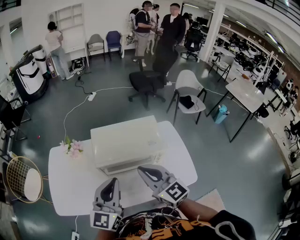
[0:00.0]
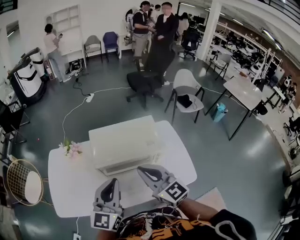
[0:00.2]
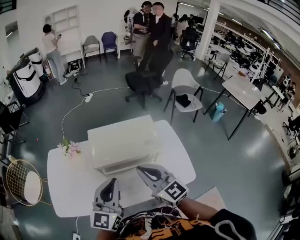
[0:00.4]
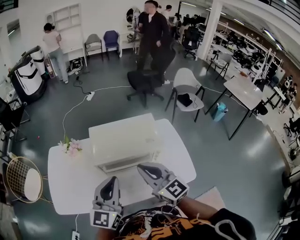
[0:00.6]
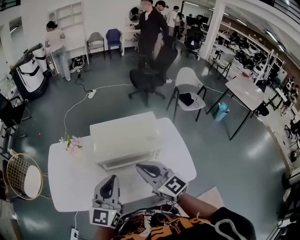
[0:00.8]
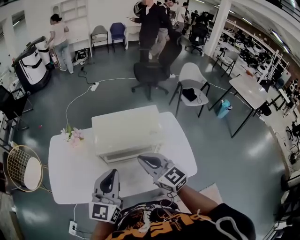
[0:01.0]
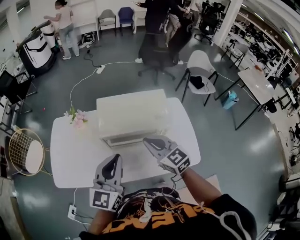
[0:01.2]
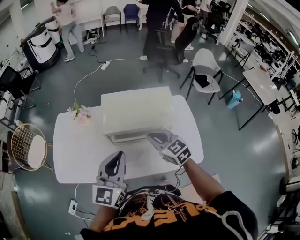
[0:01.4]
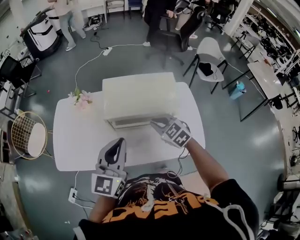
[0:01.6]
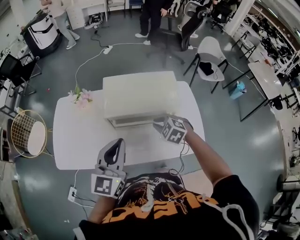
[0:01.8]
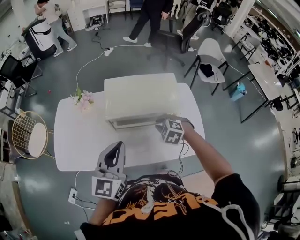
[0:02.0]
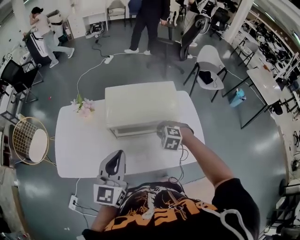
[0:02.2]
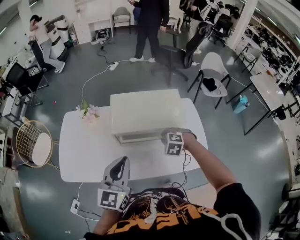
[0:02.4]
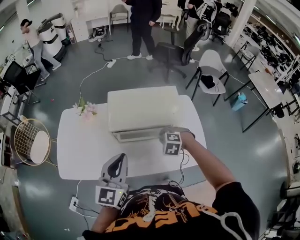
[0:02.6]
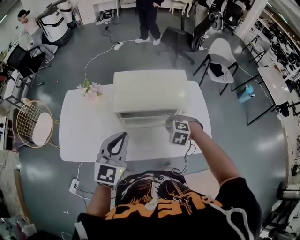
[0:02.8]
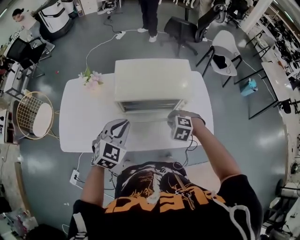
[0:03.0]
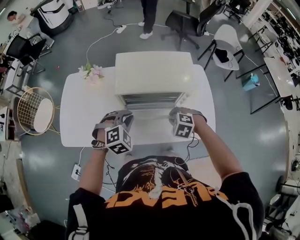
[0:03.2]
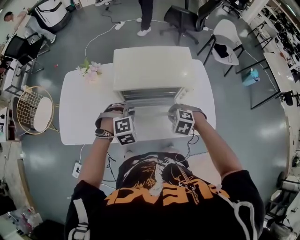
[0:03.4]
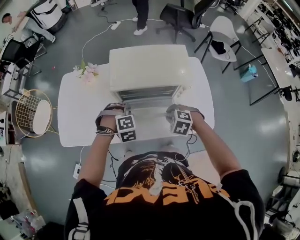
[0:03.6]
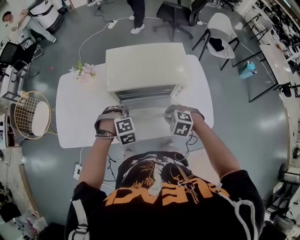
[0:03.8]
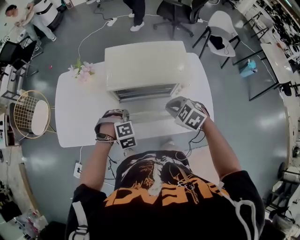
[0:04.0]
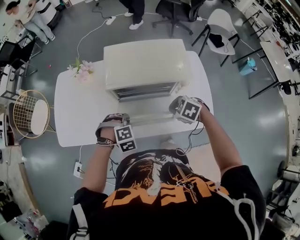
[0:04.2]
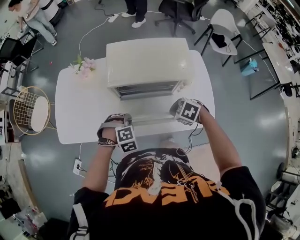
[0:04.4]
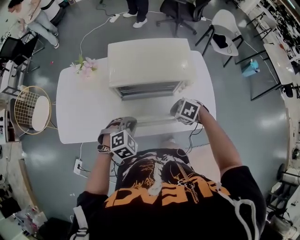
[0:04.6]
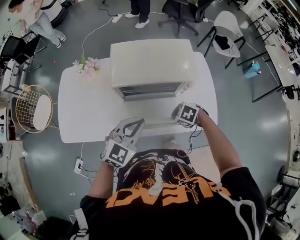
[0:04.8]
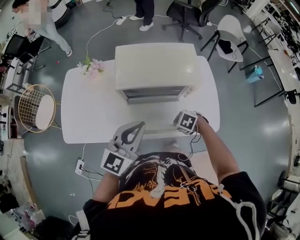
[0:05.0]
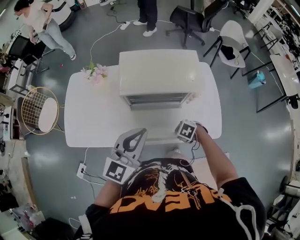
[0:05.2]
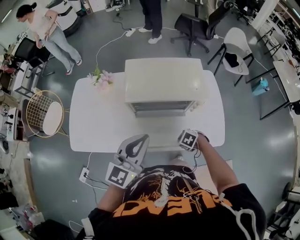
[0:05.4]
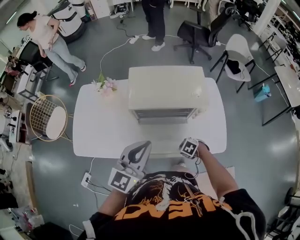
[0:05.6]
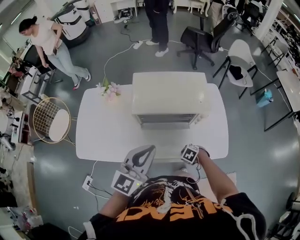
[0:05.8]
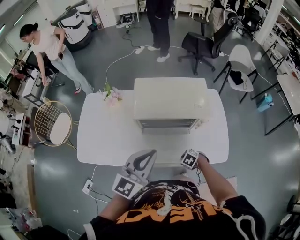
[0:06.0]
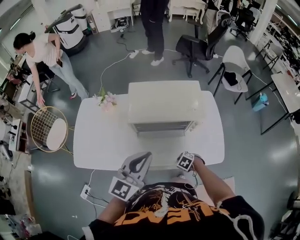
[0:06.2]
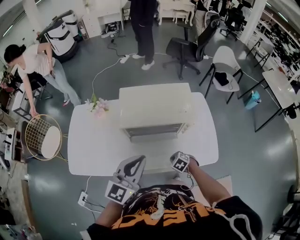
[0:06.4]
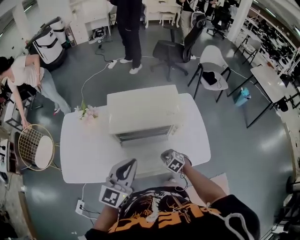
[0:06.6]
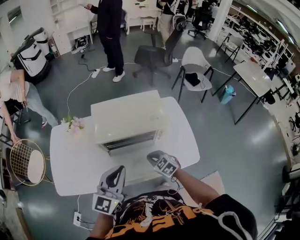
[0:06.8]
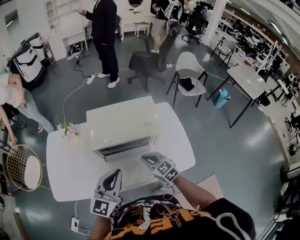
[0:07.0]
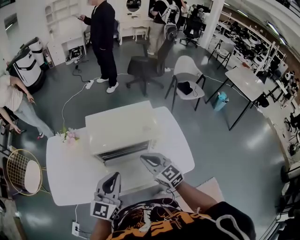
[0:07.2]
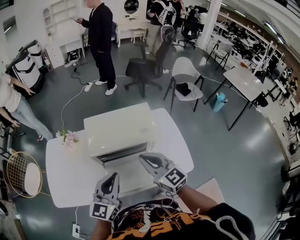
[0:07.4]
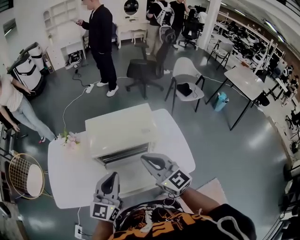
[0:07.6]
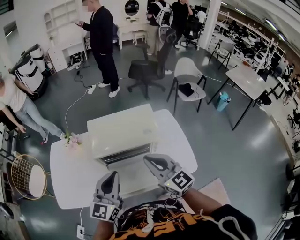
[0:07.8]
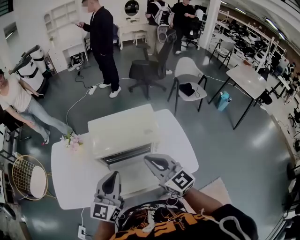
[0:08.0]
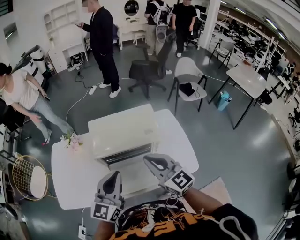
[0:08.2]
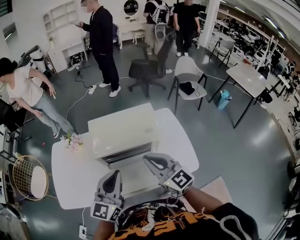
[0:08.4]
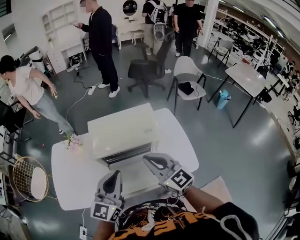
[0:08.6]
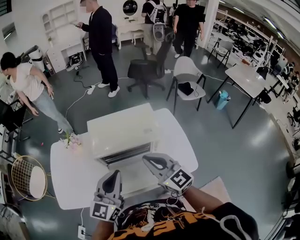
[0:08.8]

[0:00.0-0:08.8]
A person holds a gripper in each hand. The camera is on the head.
0:00.0 to 0:01.4: The right gripper is displaced downward by approximately 10 cm, and changes its angle by about 30 degrees.
0:01.4 to 0:03.0: The two grippers go roughly 10 cm downward. The right gripper tips its fingers downward by some 40 degrees. Meanwhile the left gripper swivels about 40 degrees.
0:03.0 to 0:04.4: The right gripper swivels roughly 30 degrees. Meanwhile the left gripper moves downward, approximately 20 cm, and angles its fingers downward, by some 40 degrees.
0:04.4 to 0:05.8: The left gripper goes approximately 25 cm upward, and tilts its fingers roughly 70 degrees upward. Meanwhile the right gripper travels downward by some 15 cm.
0:05.8 to 0:07.4: The right gripper is displaced upward by approximately 35 cm, and tilts its fingers approximately 70 degrees upward.
0:07.4 to 0:08.8: The grippers make only small movements.

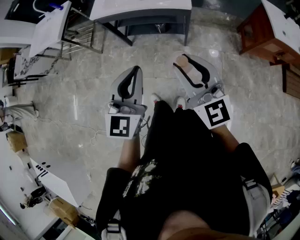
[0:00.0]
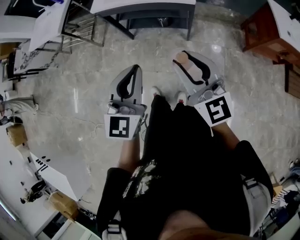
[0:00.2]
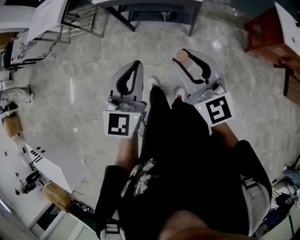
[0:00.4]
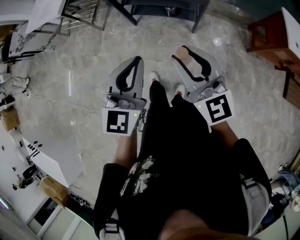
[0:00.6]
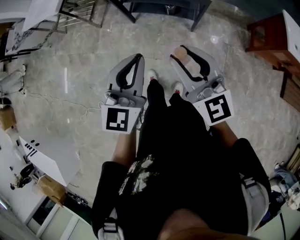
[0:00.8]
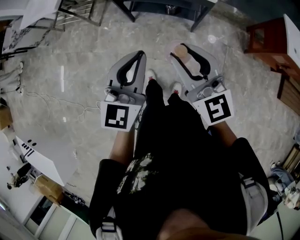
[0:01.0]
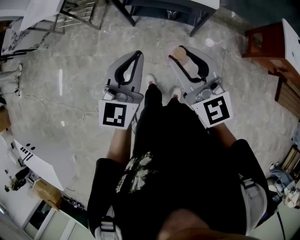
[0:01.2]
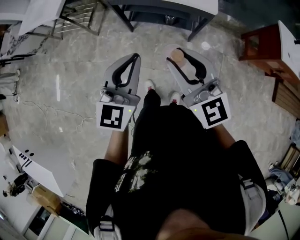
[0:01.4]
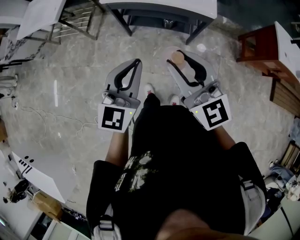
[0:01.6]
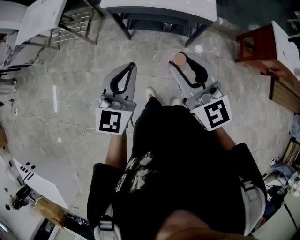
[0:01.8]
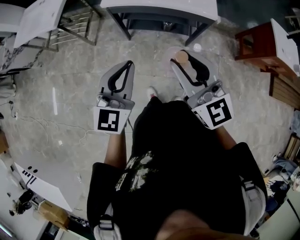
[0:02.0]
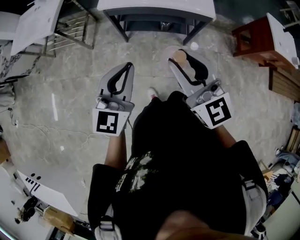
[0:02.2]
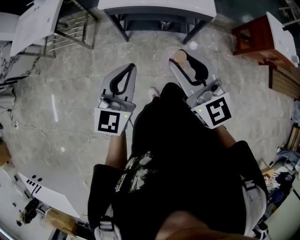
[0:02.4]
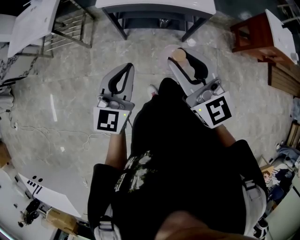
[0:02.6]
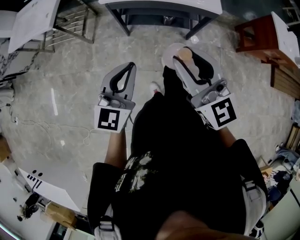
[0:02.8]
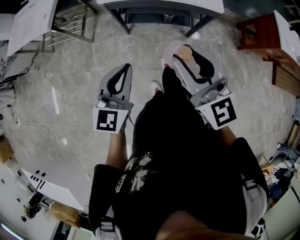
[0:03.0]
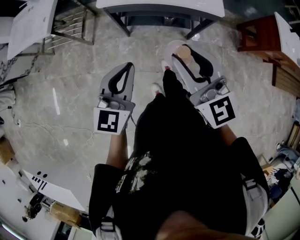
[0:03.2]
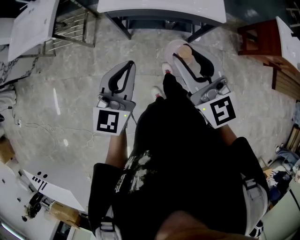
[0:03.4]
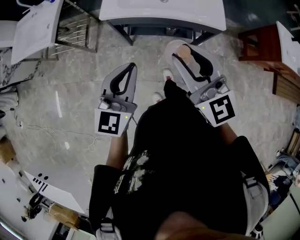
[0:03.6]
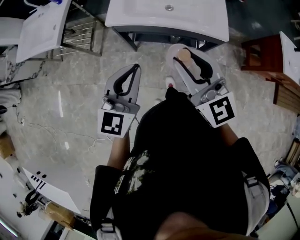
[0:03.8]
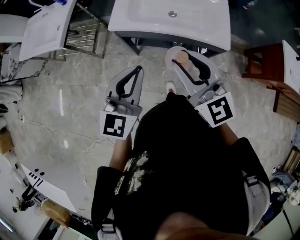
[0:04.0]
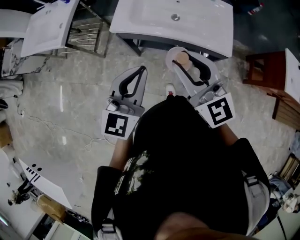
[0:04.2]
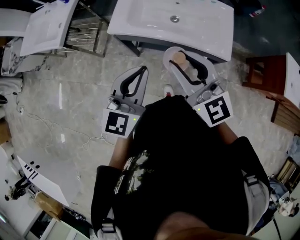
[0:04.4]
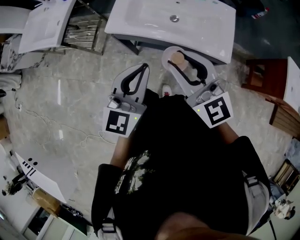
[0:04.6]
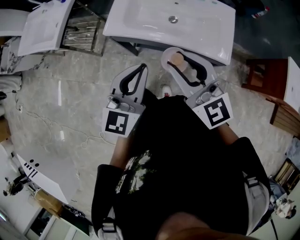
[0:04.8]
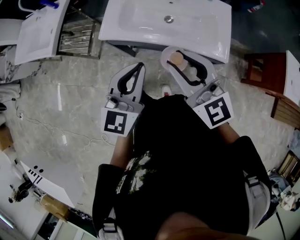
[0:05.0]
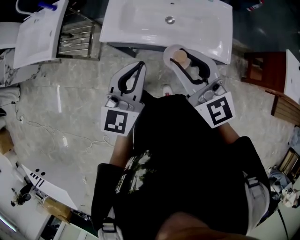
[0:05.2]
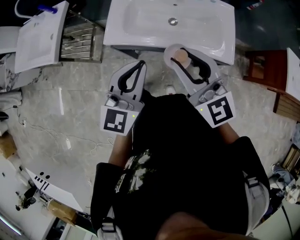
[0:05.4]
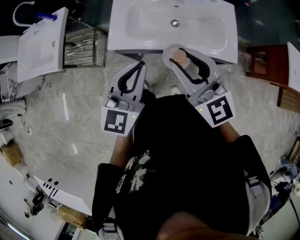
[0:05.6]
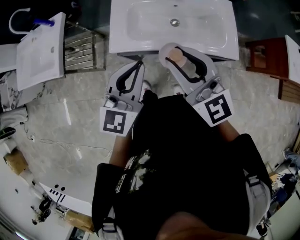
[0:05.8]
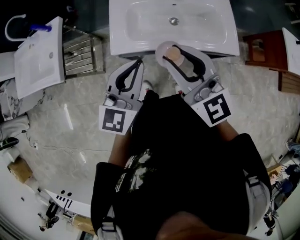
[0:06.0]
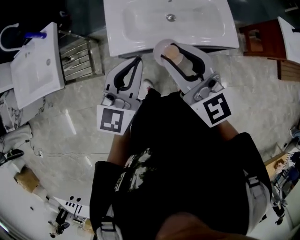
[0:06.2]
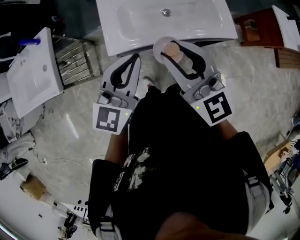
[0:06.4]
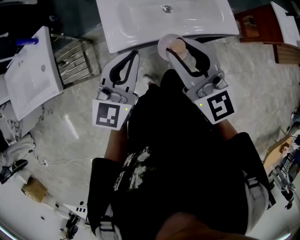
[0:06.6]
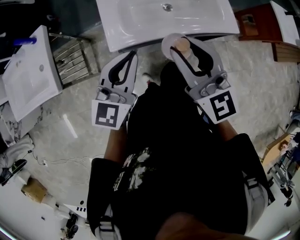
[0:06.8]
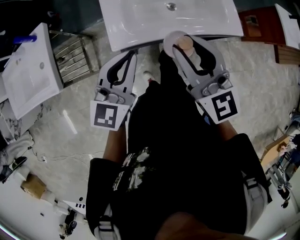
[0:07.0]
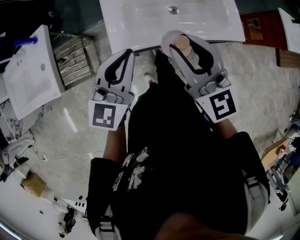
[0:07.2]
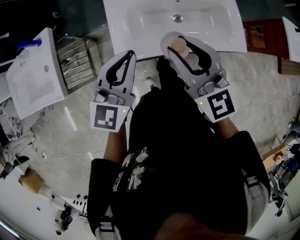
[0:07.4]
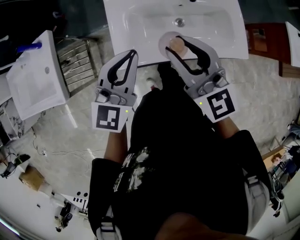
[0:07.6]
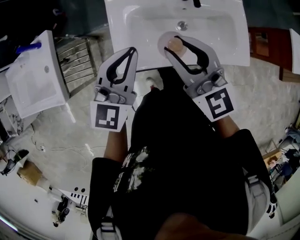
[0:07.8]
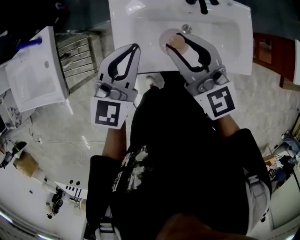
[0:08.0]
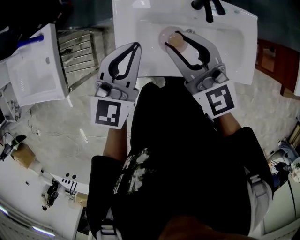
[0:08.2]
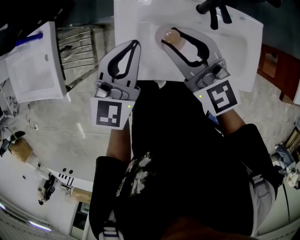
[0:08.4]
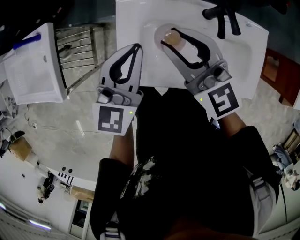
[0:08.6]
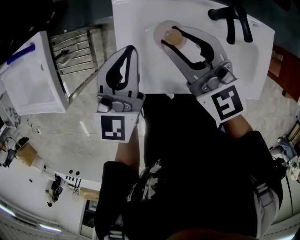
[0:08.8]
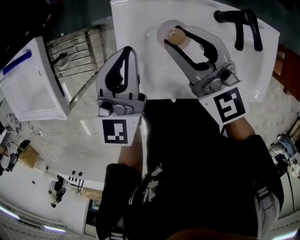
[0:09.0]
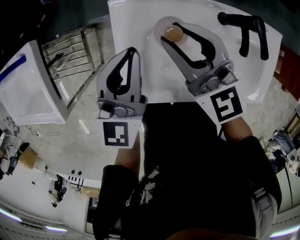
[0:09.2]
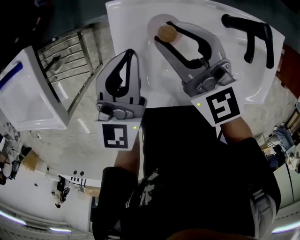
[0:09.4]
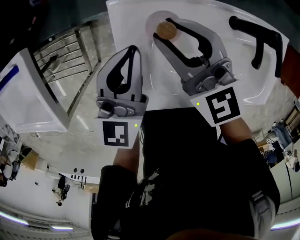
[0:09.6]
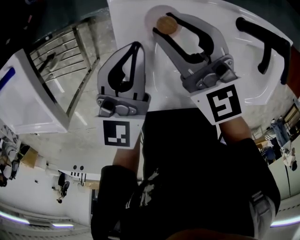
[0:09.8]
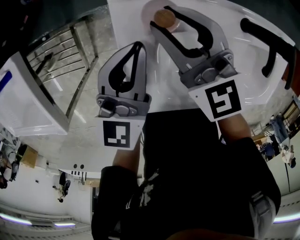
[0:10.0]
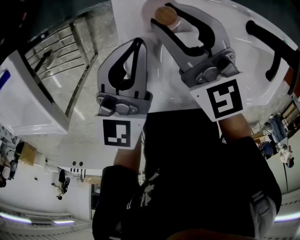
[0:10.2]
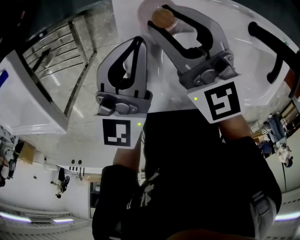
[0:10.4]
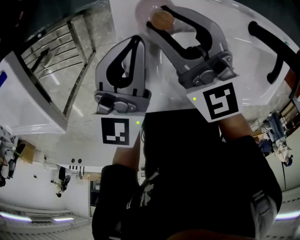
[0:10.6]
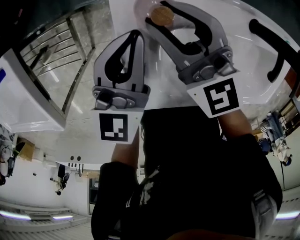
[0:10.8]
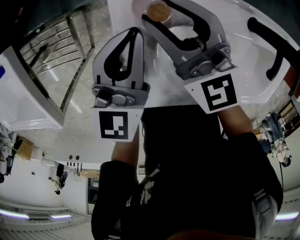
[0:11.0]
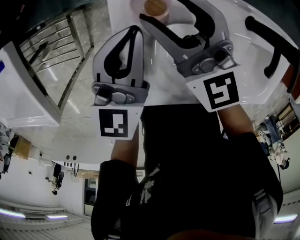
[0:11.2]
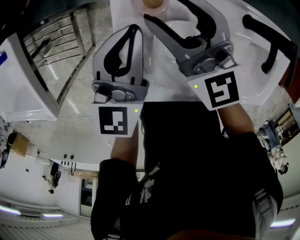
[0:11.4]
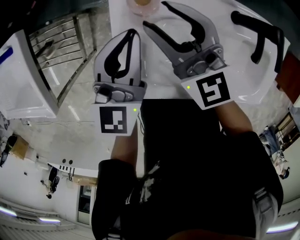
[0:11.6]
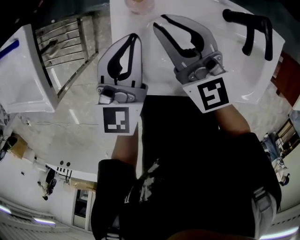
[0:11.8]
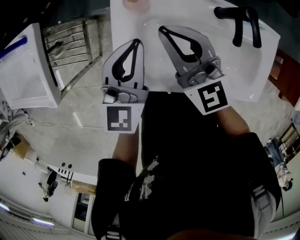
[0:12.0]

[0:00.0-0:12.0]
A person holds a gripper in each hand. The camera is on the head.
0:00.0 to 0:01.6: The grippers both shift to the left and forward by roughly 20 cm.
0:01.6 to 0:03.0: The right gripper moves to the left and forward, some 10 cm. Meanwhile the left gripper goes approximately 15 cm to the left, forward and downward.
0:03.0 to 0:04.4: The right gripper heads forward, covering approximately 25 cm; the left gripper travels forward and to the right by some 25 cm.
0:04.4 to 0:06.0: The two grippers go approximately 20 cm forward and to the left.
0:06.0 to 0:07.6: The left gripper is displaced forward and to the left by roughly 20 cm, while the right gripper heads forward, covering roughly 15 cm.
0:07.6 to 0:09.0: Both grippers travel together forward and downward, about 25 cm. The left gripper rotates approximately 20 degrees.
0:09.0 to 0:10.4: The right gripper goes approximately 15 cm downward, forward and to the left. The left gripper moves downward and forward, roughly 15 cm.
0:10.4 to 0:12.0: The right gripper shifts about 20 cm backward, upward and to the right, and closes, while the left gripper heads backward and upward, covering approximately 15 cm.

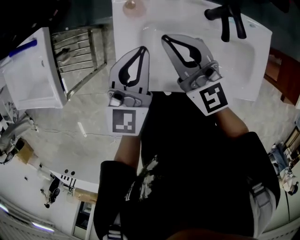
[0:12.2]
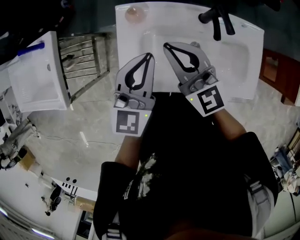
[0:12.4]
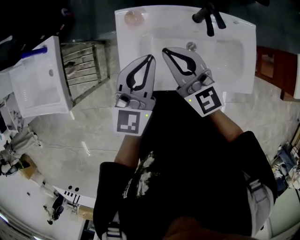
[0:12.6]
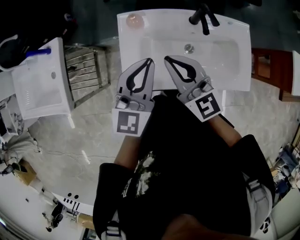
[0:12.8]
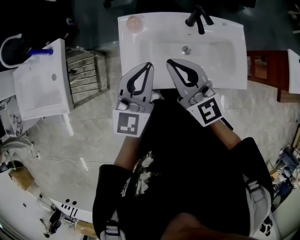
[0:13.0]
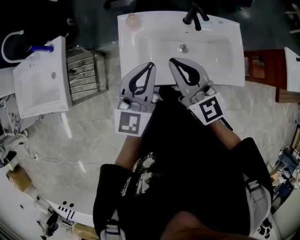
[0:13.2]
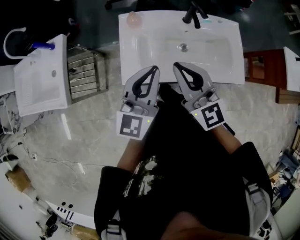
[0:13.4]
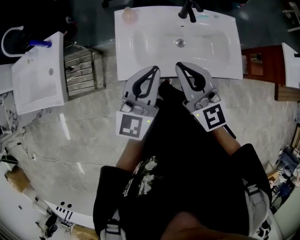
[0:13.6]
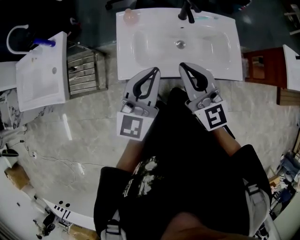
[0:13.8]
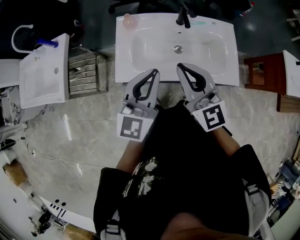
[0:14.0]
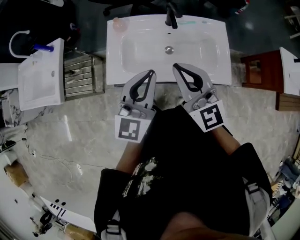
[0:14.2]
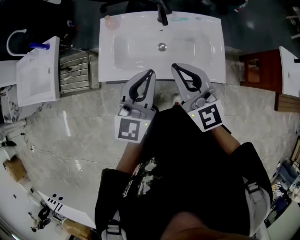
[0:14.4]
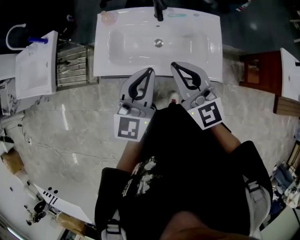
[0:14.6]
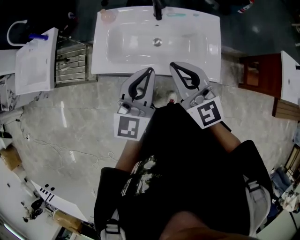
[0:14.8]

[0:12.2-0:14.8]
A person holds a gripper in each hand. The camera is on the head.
0:12.2 to 0:13.4: The grippers both shift backward and upward by roughly 20 cm.
0:13.4 to 0:14.8: The grippers both shift to the right by some 20 cm.
